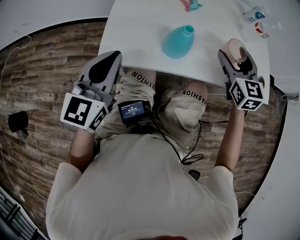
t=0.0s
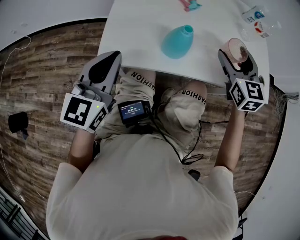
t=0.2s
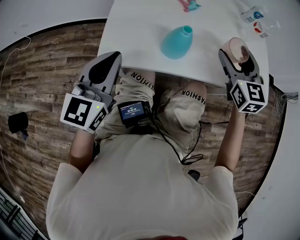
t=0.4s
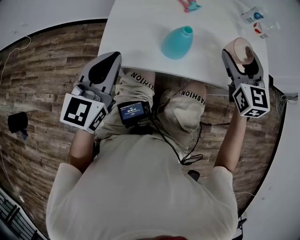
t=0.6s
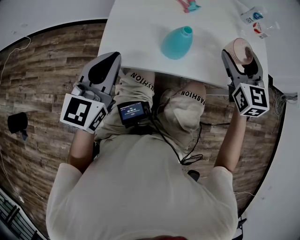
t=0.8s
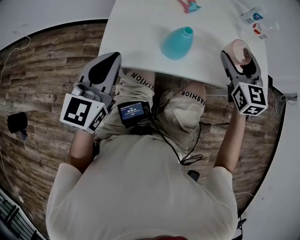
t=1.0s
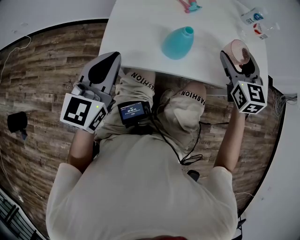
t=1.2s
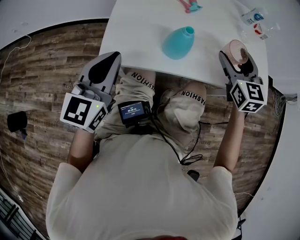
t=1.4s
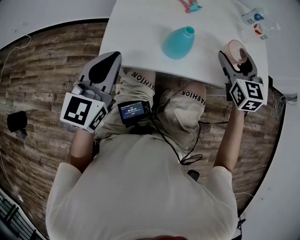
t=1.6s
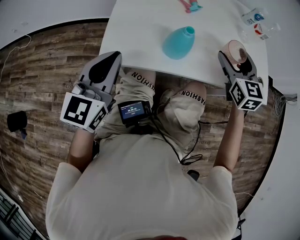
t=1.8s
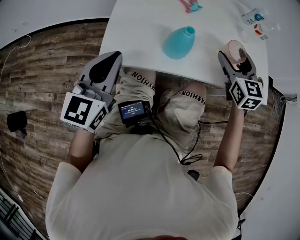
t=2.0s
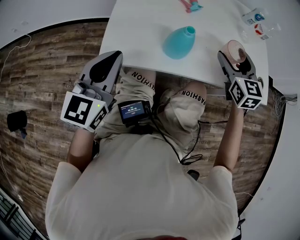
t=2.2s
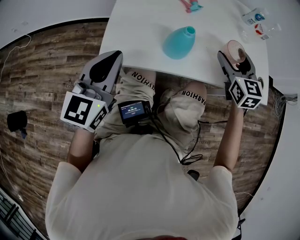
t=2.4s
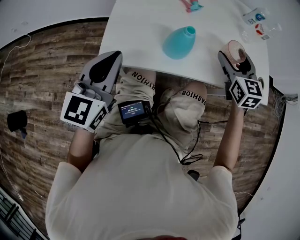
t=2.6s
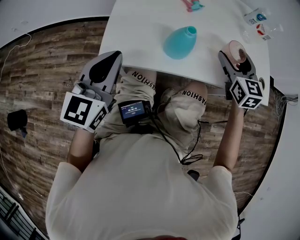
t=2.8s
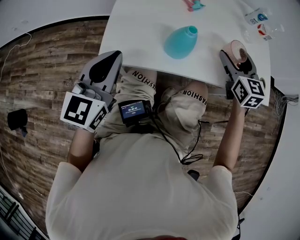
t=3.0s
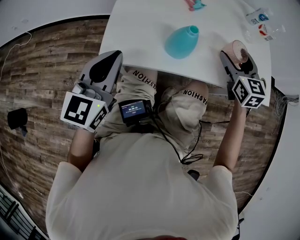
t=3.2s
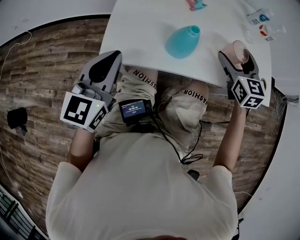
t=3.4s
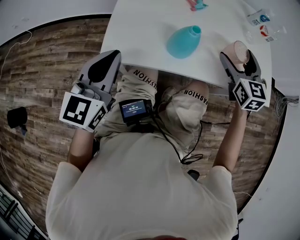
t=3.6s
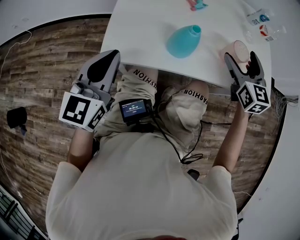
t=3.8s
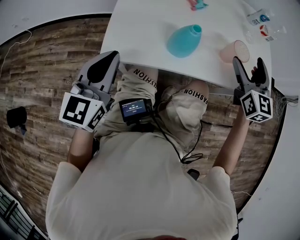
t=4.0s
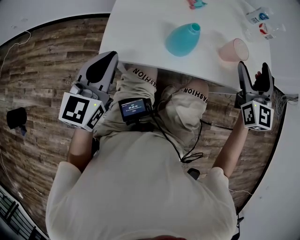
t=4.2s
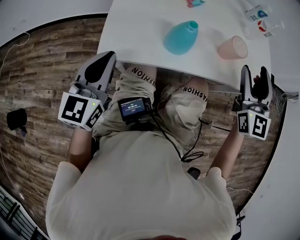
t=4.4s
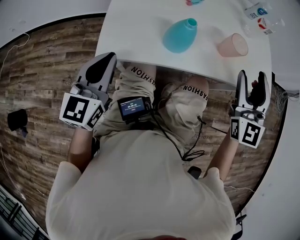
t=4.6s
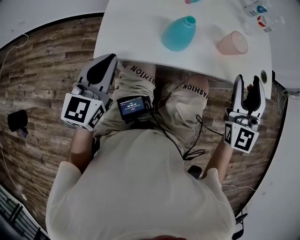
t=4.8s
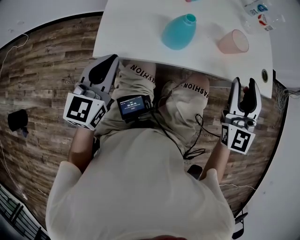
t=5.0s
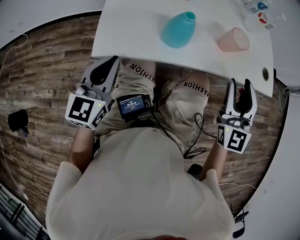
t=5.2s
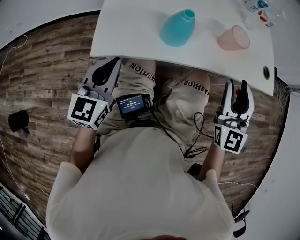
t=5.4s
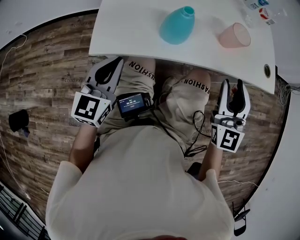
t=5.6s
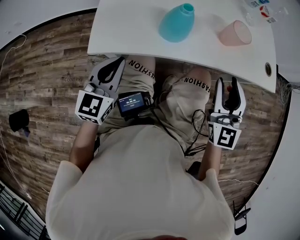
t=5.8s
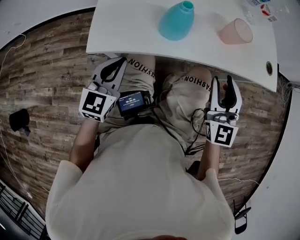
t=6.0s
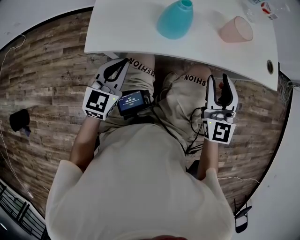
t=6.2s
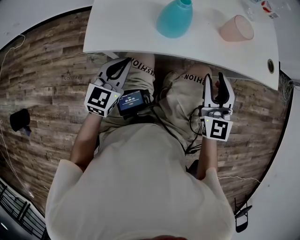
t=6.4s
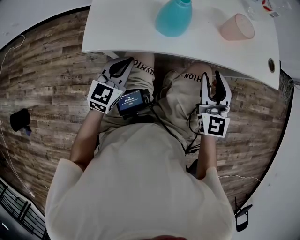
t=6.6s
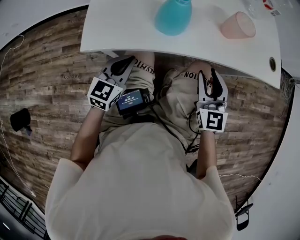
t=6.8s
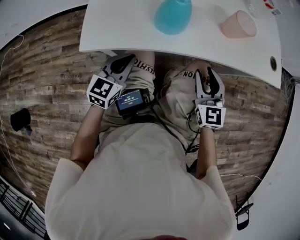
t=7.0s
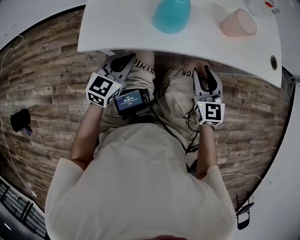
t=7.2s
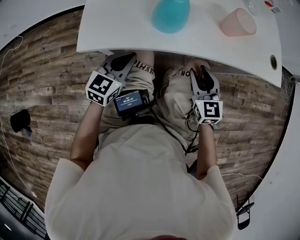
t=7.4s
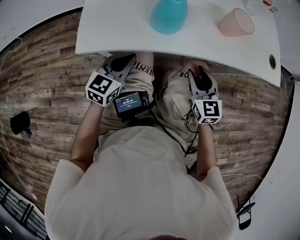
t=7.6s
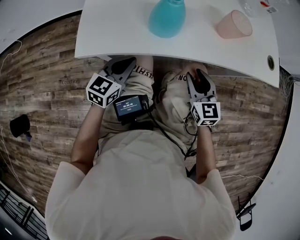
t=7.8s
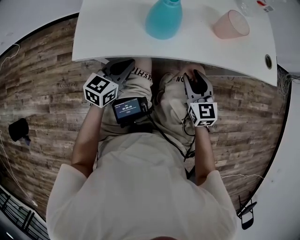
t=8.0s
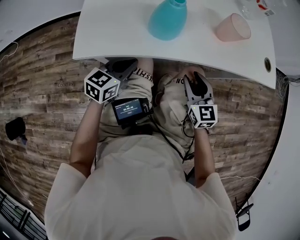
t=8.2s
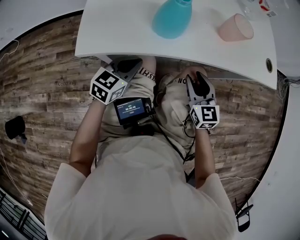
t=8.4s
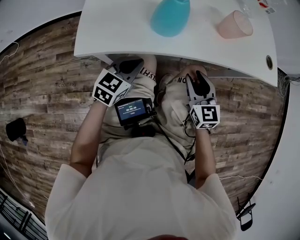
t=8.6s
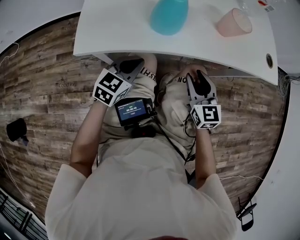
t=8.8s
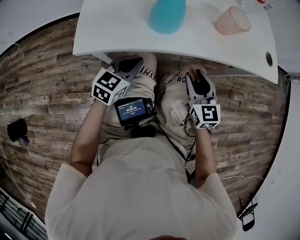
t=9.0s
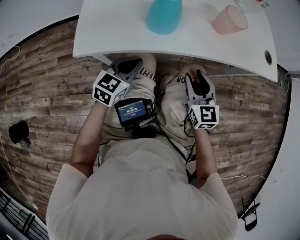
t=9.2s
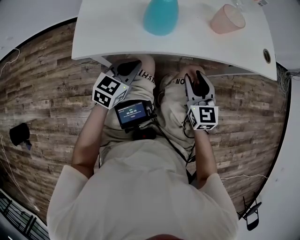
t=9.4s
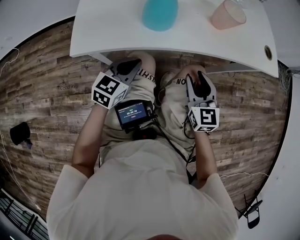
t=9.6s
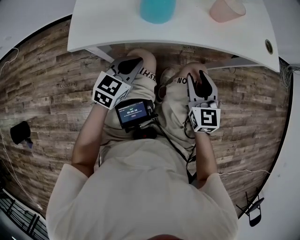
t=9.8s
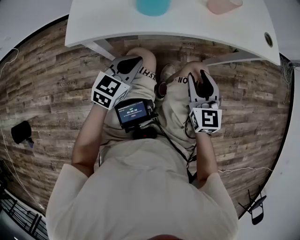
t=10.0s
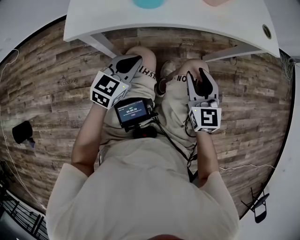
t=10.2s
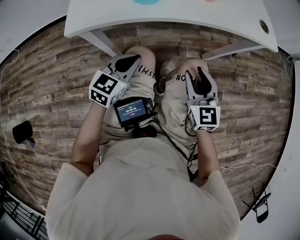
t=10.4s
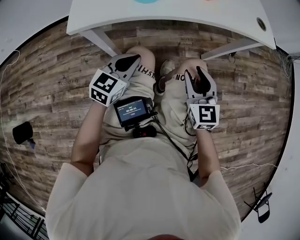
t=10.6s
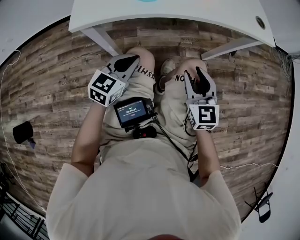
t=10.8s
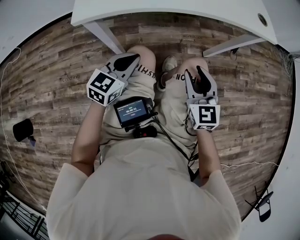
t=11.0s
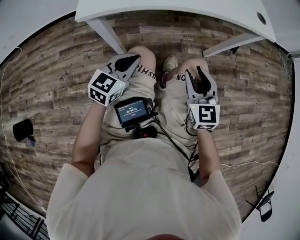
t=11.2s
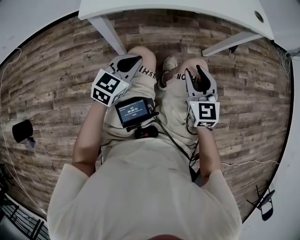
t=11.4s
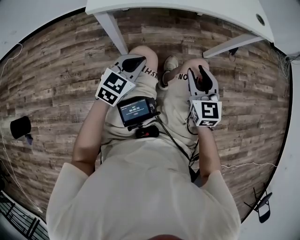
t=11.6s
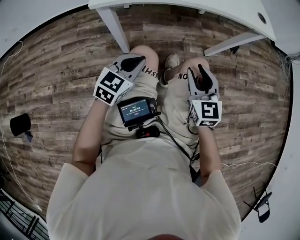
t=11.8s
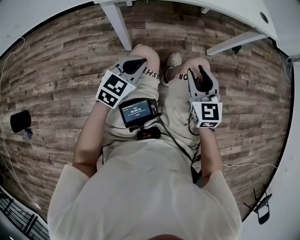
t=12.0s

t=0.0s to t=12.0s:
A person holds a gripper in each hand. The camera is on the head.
t=0.0s to t=3.0s: There are only small adjustments of the grippers.
t=3.0s to t=4.4s: The right gripper is displaced upward and backward by about 15 cm, and rotates approximately 20 degrees.
t=4.4s to t=6.0s: The left gripper moves downward and to the right, about 10 cm, while the right gripper heads downward and backward, covering about 15 cm.
t=6.0s to t=7.6s: The right gripper moves downward, about 15 cm, and swivels roughly 20 degrees; the left gripper travels downward by approximately 10 cm.
t=7.6s to t=9.0s: The grippers make only small movements.
t=9.0s to t=10.4s: Both grippers travel together backward, roughly 10 cm.
t=10.4s to t=12.0s: The grippers both shift backward by roughly 15 cm.

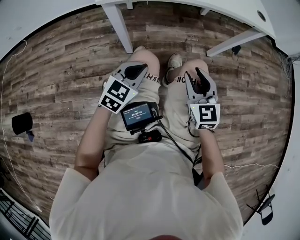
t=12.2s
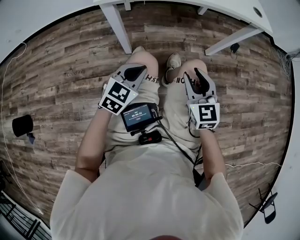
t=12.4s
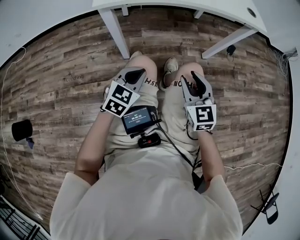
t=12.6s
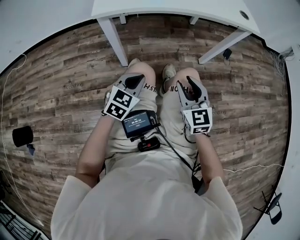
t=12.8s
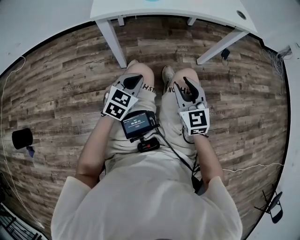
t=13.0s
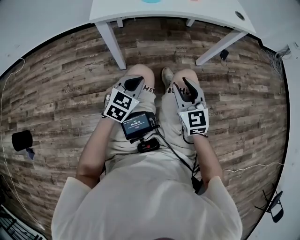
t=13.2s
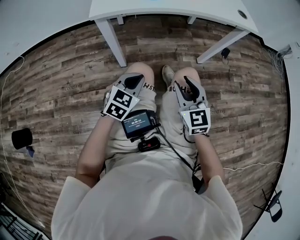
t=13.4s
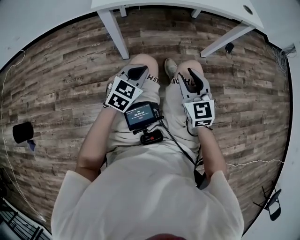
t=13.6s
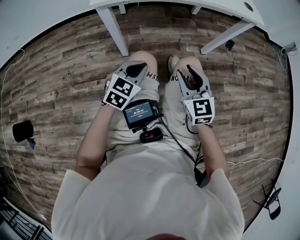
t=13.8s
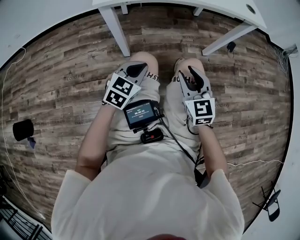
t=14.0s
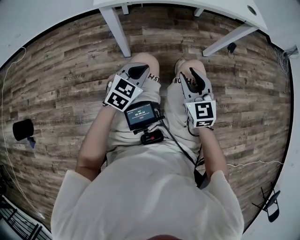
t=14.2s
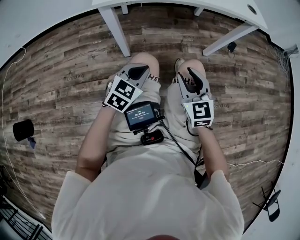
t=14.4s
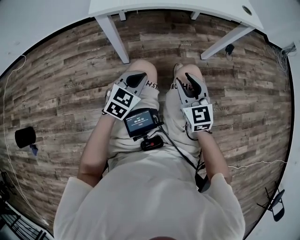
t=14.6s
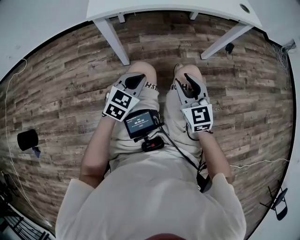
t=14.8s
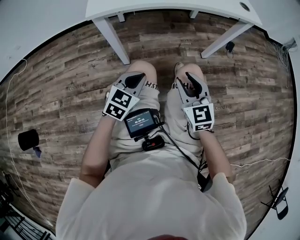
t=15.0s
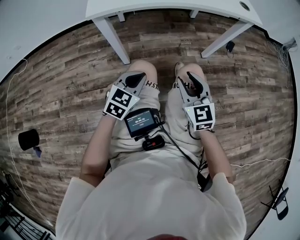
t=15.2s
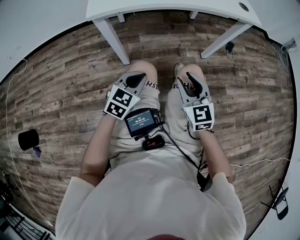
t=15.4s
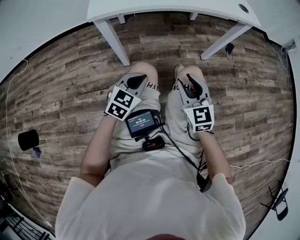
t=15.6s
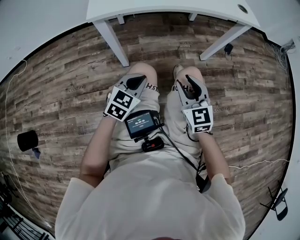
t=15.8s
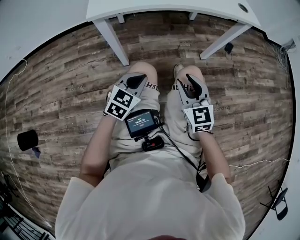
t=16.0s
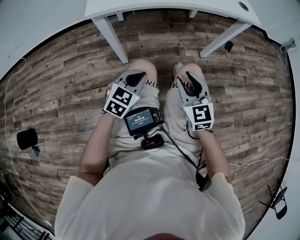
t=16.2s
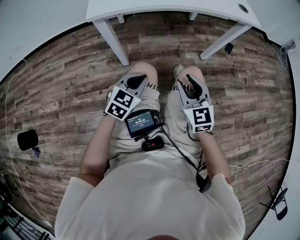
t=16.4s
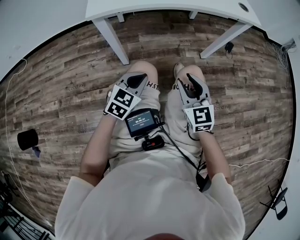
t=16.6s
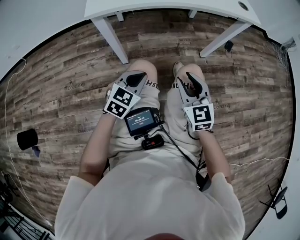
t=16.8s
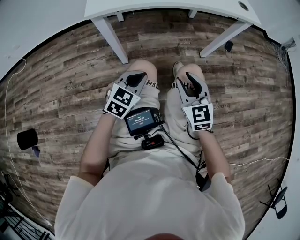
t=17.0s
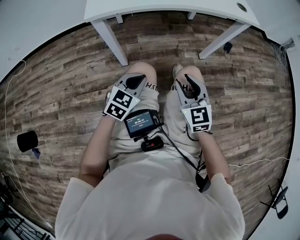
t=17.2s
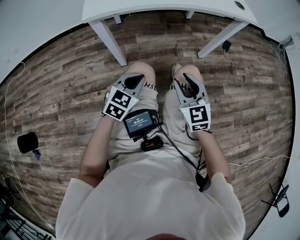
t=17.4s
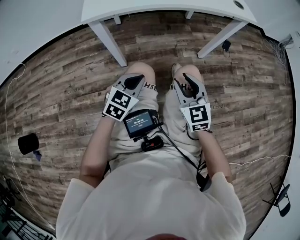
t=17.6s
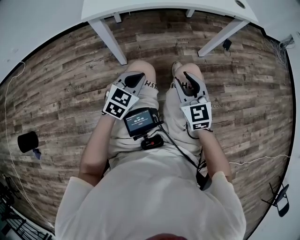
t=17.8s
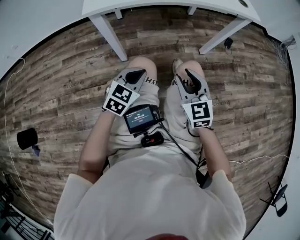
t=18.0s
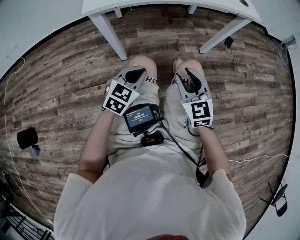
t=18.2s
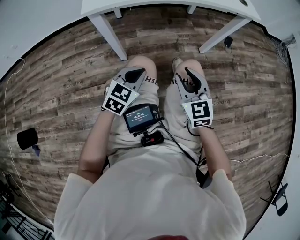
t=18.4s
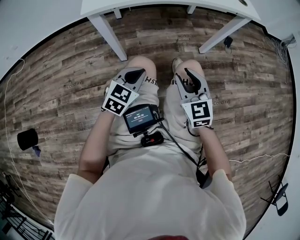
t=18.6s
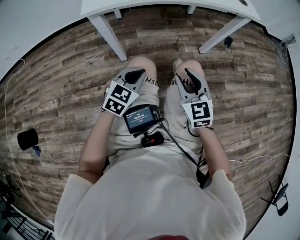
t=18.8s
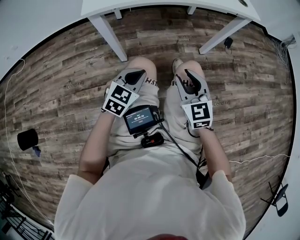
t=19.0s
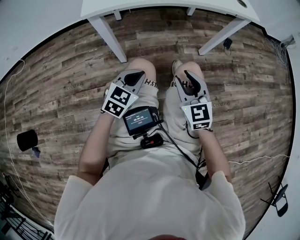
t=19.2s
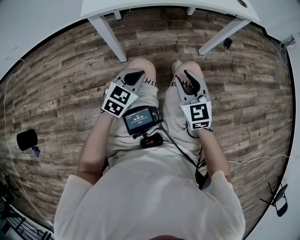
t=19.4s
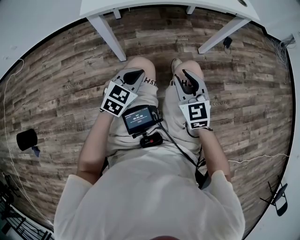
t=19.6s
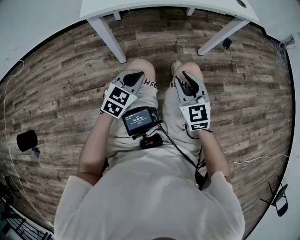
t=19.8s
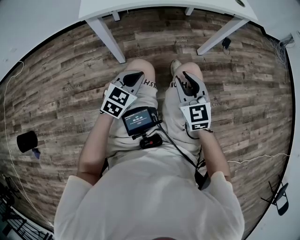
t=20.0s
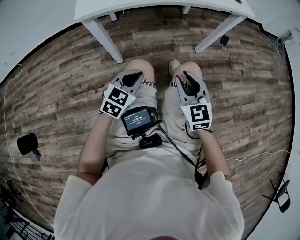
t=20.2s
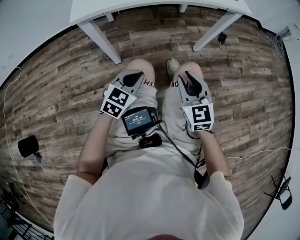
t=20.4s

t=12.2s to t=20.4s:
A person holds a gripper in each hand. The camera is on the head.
t=12.2s to t=13.8s: There are only small adjustments of the grippers.
t=13.8s to t=18.8s: Both grippers stay about where they are.
t=18.8s to t=20.4s: The grippers stay close to where they were, moving slightly.

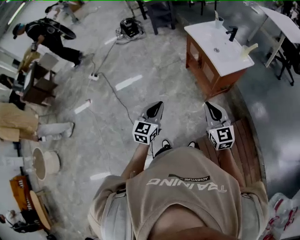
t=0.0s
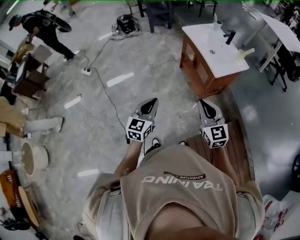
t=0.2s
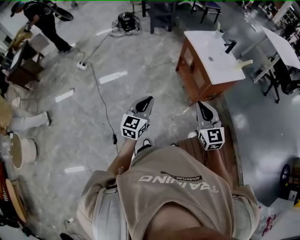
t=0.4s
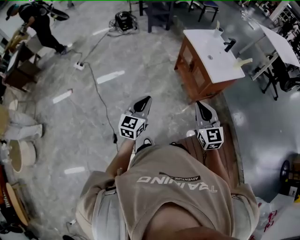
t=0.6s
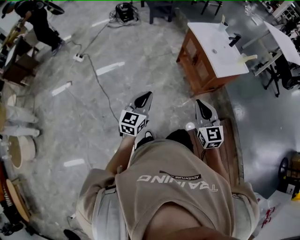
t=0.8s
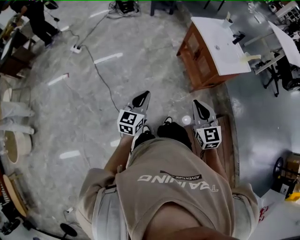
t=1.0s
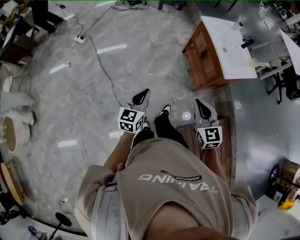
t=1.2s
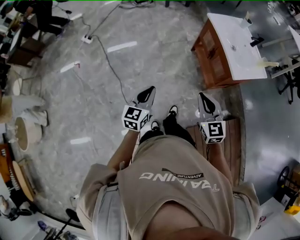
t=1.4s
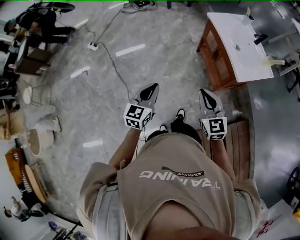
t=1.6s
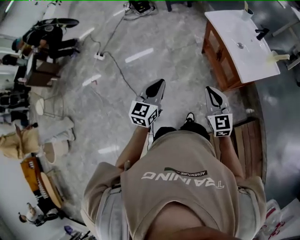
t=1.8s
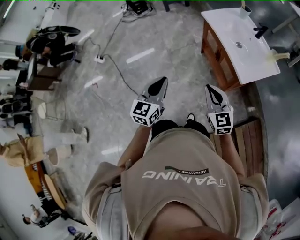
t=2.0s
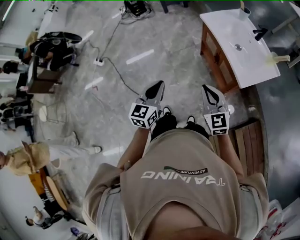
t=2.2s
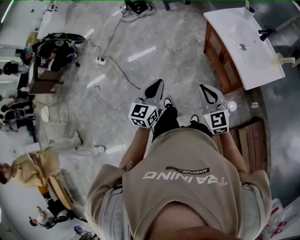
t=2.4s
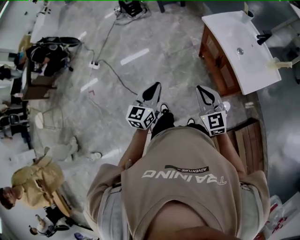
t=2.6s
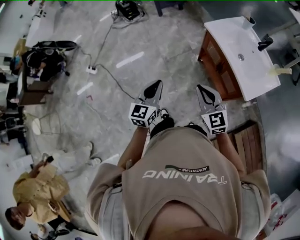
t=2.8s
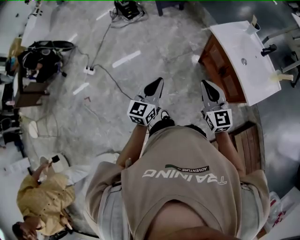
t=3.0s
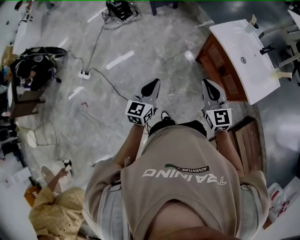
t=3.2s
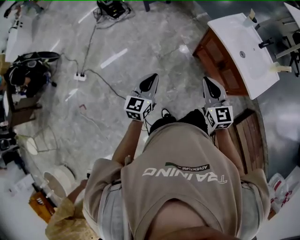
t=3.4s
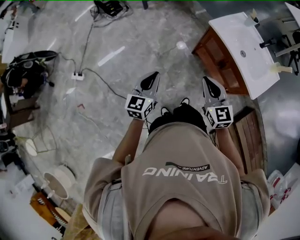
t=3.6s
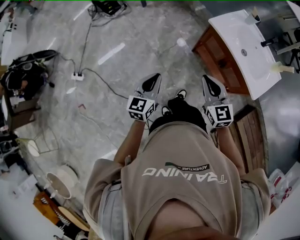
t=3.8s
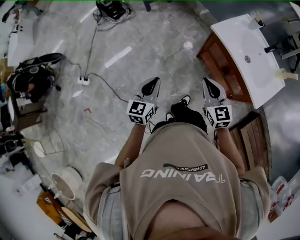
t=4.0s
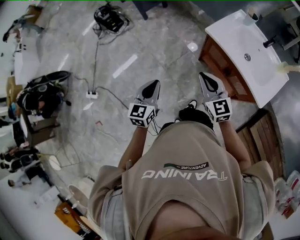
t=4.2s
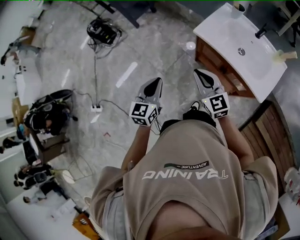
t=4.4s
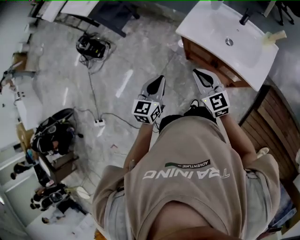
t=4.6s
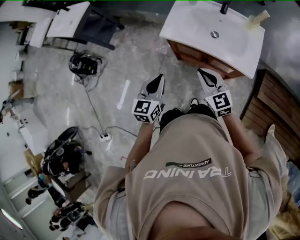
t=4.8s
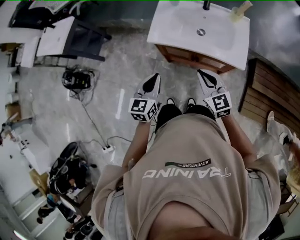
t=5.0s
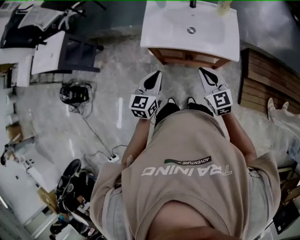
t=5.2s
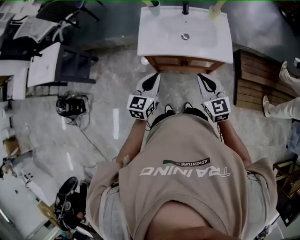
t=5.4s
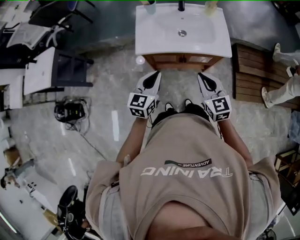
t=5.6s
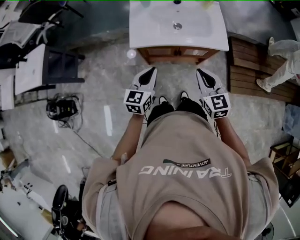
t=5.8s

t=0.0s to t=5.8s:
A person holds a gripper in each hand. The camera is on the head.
t=0.0s to t=1.4s: The two grippers go some 10 cm to the left and forward.
t=1.4s to t=2.8s: Both grippers move forward, roughly 25 cm.
t=2.8s to t=4.4s: The two grippers go some 25 cm forward. The left gripper changes its angle by about 20 degrees.
t=4.4s to t=5.8s: The left gripper ends up roughly 20 cm from where it was, and turns by approximately 50 degrees. The right gripper ends up about 15 cm from where it was, and turns by roughly 50 degrees.
